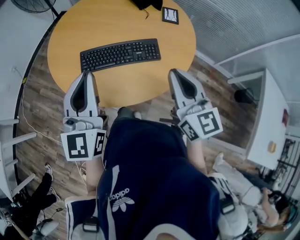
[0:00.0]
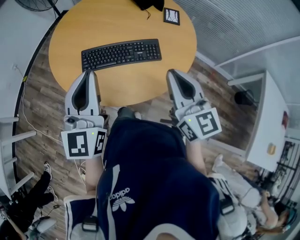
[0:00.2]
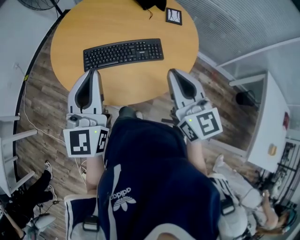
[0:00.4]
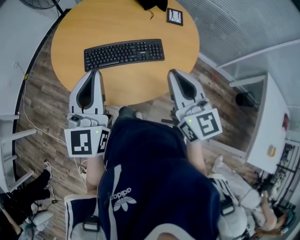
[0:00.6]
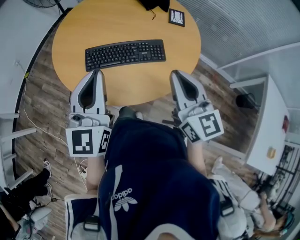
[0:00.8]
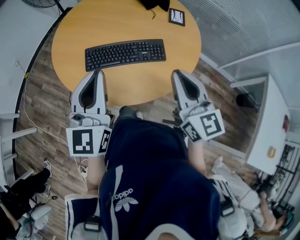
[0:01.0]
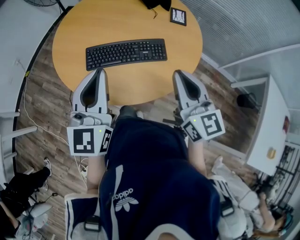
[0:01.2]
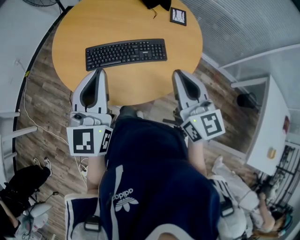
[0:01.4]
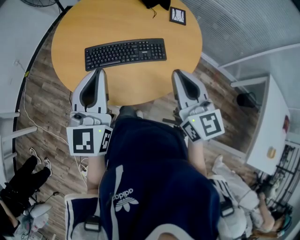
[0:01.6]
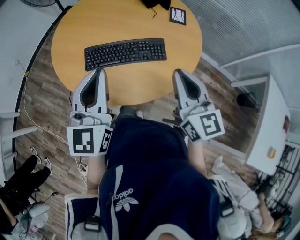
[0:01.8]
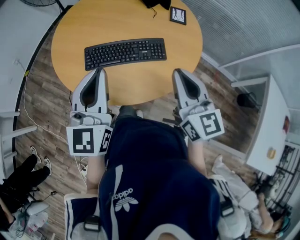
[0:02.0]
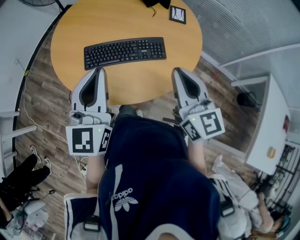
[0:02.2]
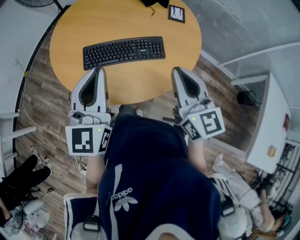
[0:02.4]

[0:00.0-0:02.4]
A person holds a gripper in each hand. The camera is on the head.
0:00.0 to 0:01.2: The grippers stay close to where they were, moving slightly.
0:01.2 to 0:02.4: Neither gripper changes place.

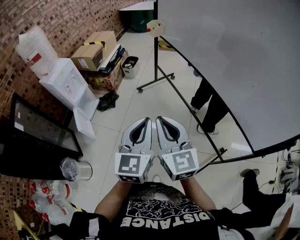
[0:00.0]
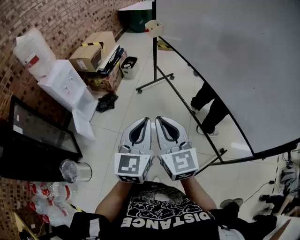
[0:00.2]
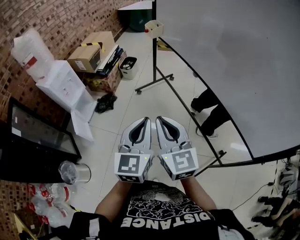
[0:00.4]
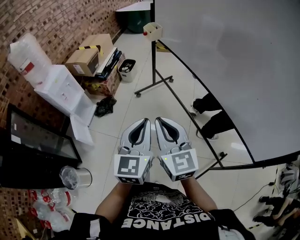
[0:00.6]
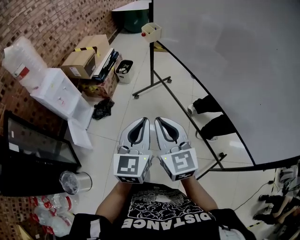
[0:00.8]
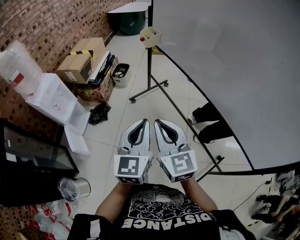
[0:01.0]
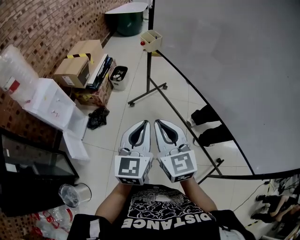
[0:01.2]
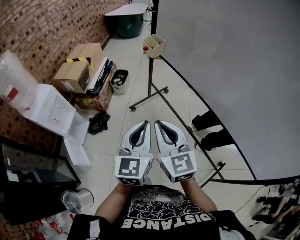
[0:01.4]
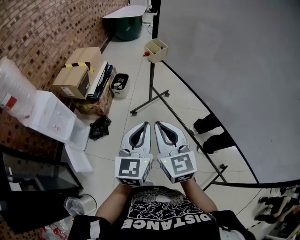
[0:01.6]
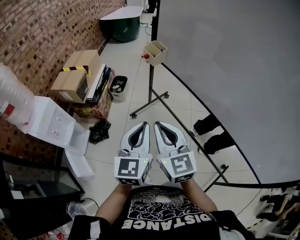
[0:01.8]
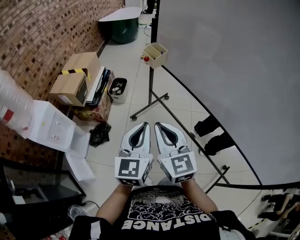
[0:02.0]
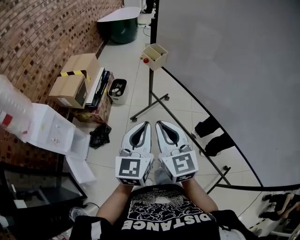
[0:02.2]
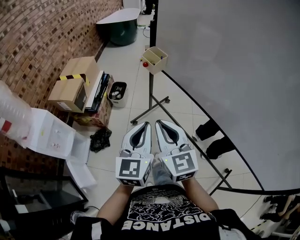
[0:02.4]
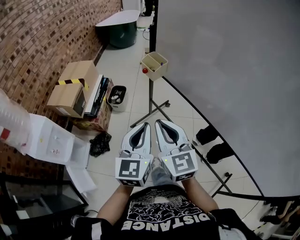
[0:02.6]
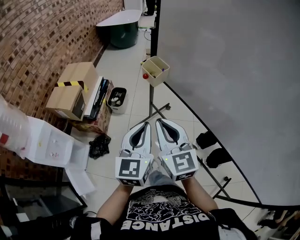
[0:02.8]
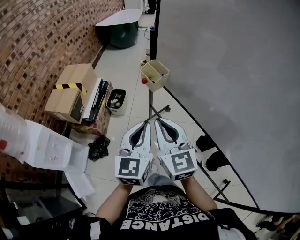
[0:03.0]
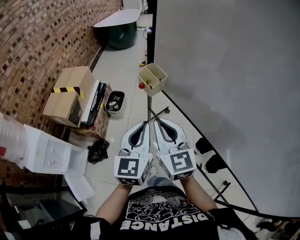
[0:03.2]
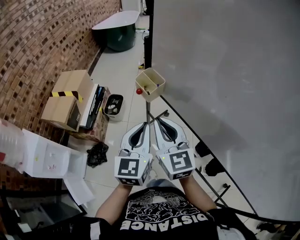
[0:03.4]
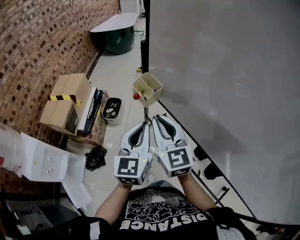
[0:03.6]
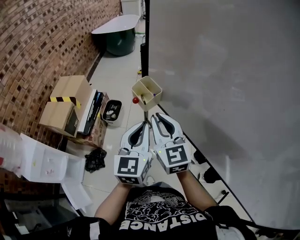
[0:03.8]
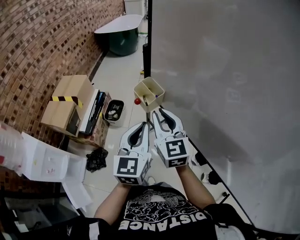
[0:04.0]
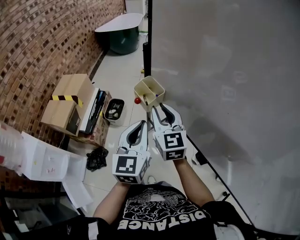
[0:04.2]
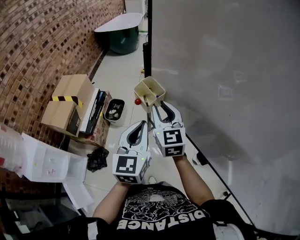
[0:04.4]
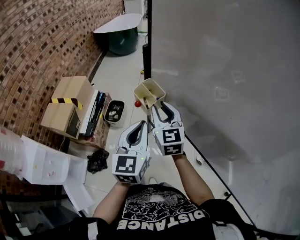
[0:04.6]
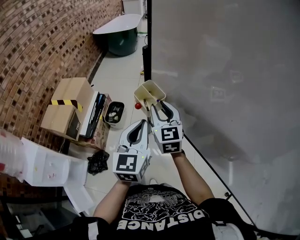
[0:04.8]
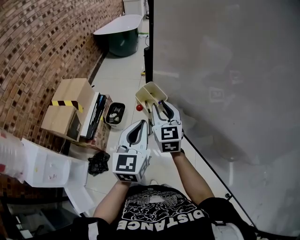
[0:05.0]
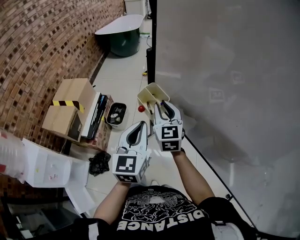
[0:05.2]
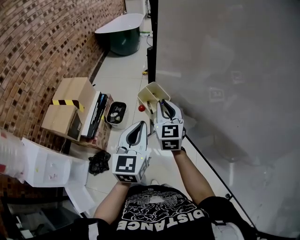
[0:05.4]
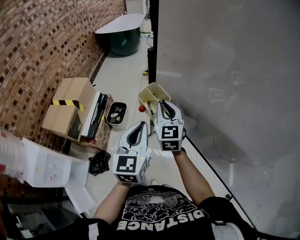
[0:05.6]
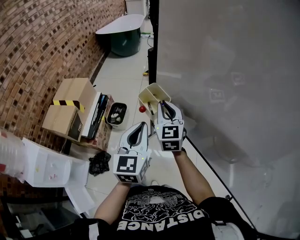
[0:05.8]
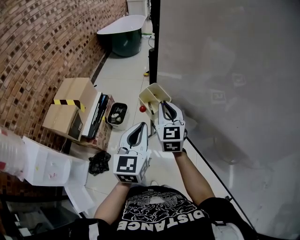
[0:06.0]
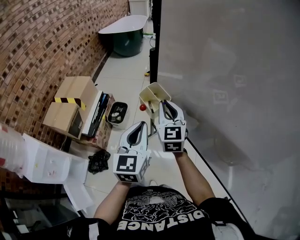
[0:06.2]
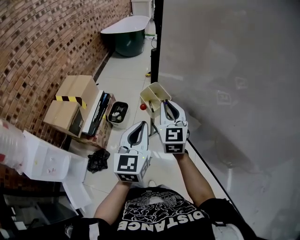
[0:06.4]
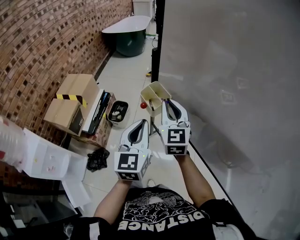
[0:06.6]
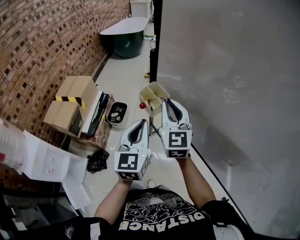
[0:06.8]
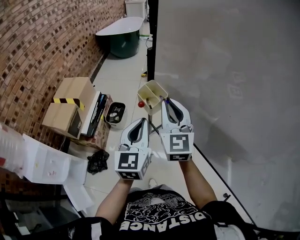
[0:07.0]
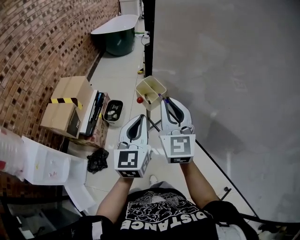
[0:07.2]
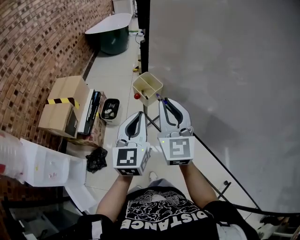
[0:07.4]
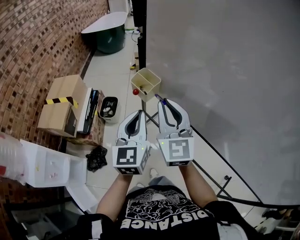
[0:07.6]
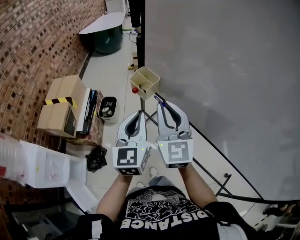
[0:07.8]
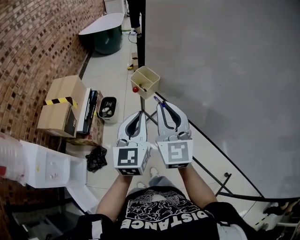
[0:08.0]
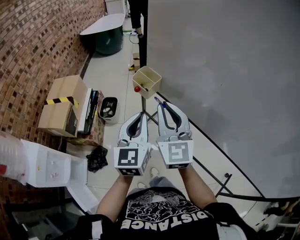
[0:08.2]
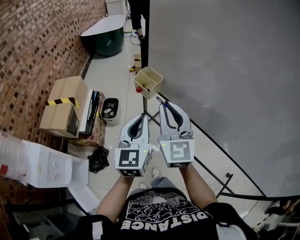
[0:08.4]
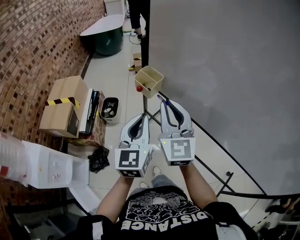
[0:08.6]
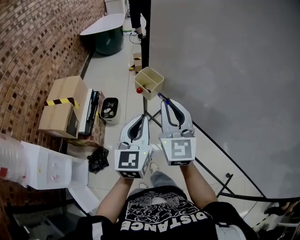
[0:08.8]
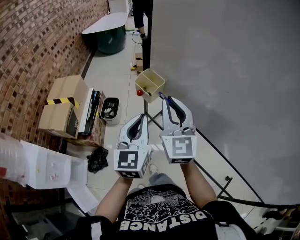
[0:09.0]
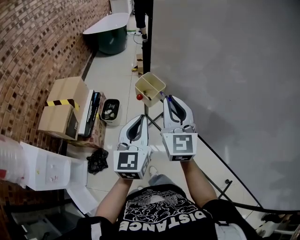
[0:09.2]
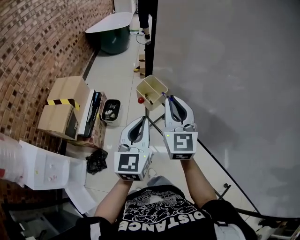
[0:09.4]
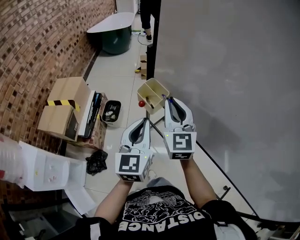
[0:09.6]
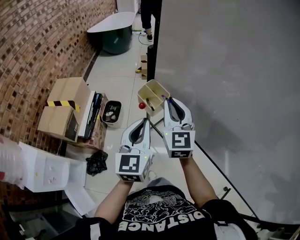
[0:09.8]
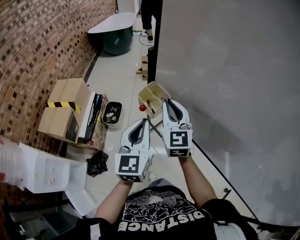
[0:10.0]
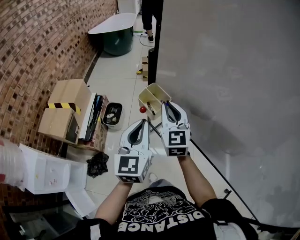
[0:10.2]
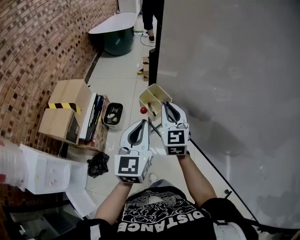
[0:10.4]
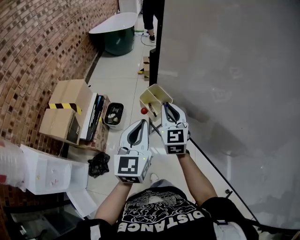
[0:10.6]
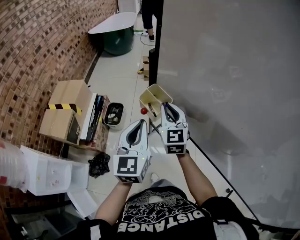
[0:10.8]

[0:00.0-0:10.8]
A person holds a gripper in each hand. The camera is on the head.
0:00.0 to 0:01.6: The two grippers go roughly 30 cm forward.
0:01.6 to 0:03.0: The two grippers go approximately 25 cm forward.
0:03.0 to 0:04.6: The right gripper travels forward by about 20 cm, and opens its fingers, while the left gripper travels forward by about 15 cm.
0:04.6 to 0:06.2: The grippers stay close to where they were, moving slightly.
0:06.2 to 0:07.8: The right gripper goes about 20 cm backward and upward. The left gripper heads backward, covering approximately 5 cm.
0:07.8 to 0:09.2: The right gripper travels forward by roughly 5 cm.
0:09.2 to 0:10.8: The right gripper shifts approximately 15 cm forward and downward. The left gripper goes roughly 5 cm forward.

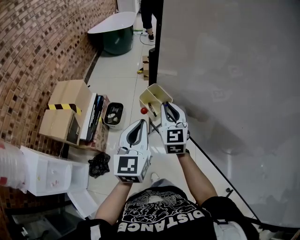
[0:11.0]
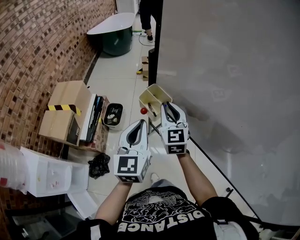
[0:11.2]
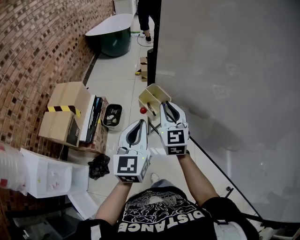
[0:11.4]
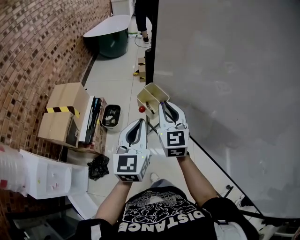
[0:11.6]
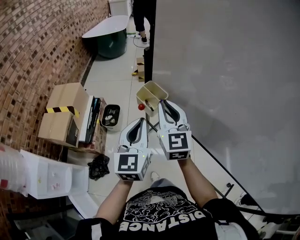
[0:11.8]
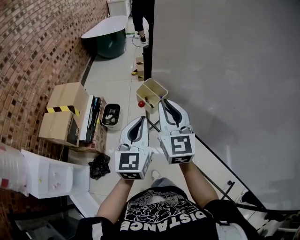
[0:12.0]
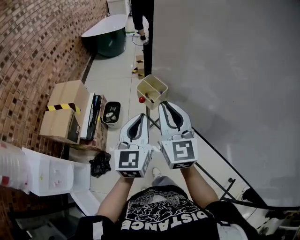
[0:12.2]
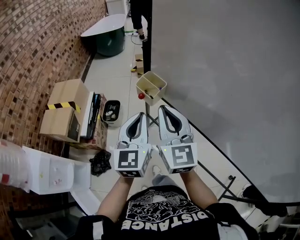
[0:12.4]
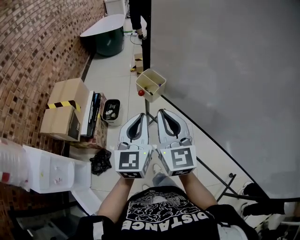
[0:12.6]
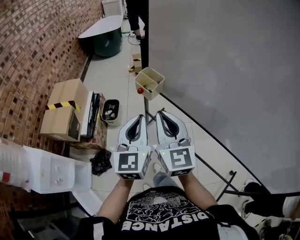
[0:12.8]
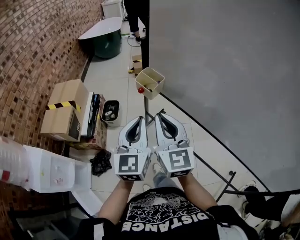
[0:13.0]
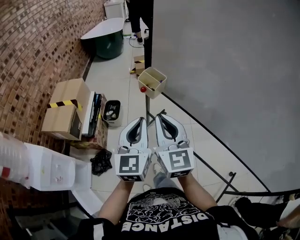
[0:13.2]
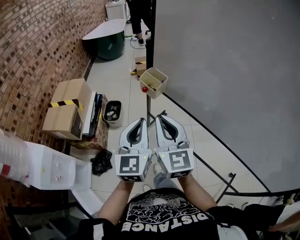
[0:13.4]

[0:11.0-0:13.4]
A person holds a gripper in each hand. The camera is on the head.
0:11.0 to 0:12.2: The right gripper travels backward and upward by about 15 cm. The left gripper moves about 5 cm.
0:12.2 to 0:13.4: The two grippers go about 10 cm backward.

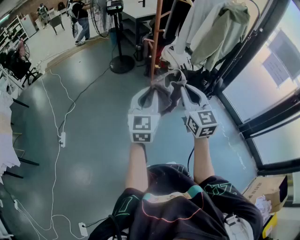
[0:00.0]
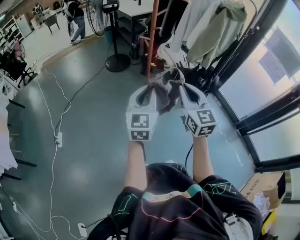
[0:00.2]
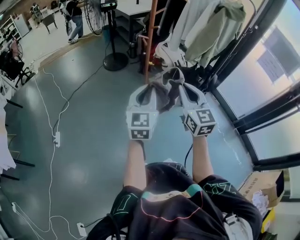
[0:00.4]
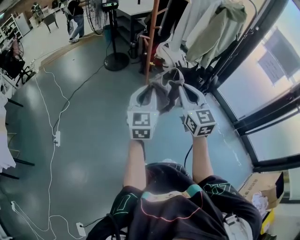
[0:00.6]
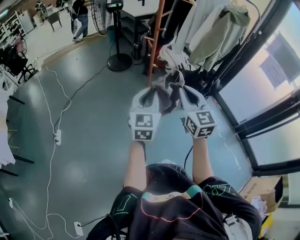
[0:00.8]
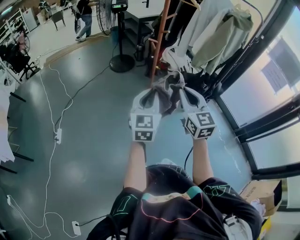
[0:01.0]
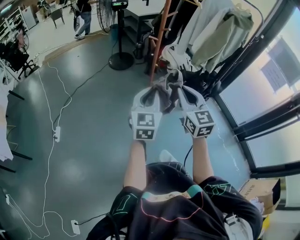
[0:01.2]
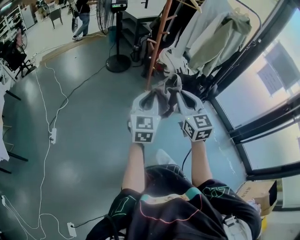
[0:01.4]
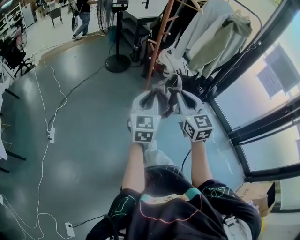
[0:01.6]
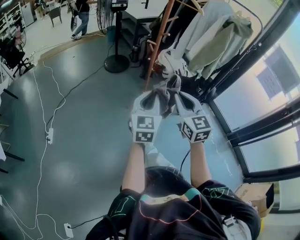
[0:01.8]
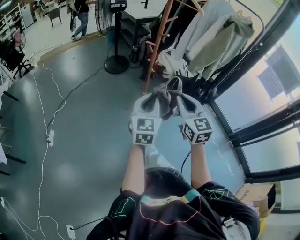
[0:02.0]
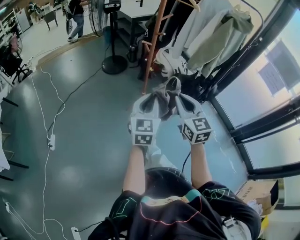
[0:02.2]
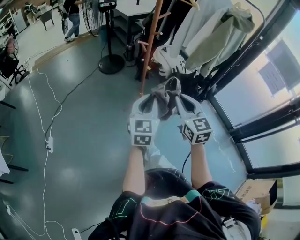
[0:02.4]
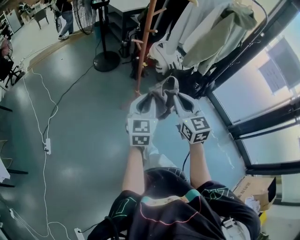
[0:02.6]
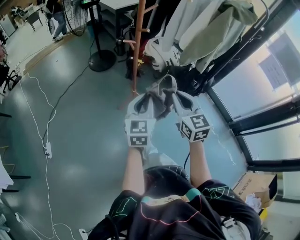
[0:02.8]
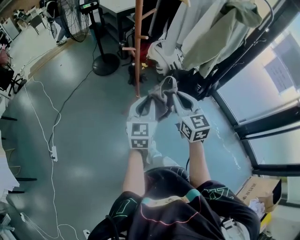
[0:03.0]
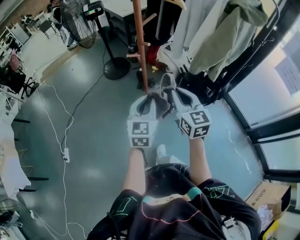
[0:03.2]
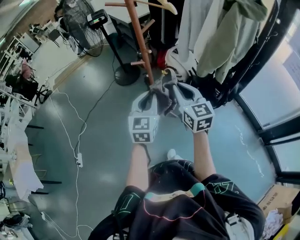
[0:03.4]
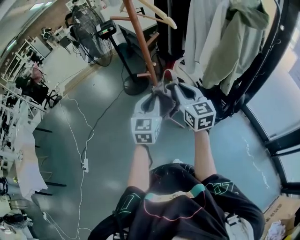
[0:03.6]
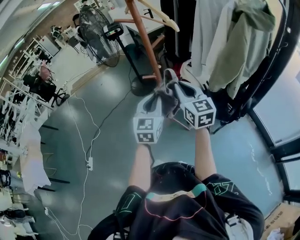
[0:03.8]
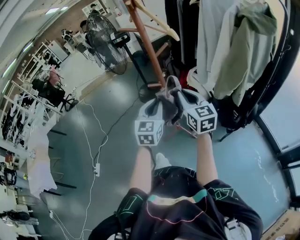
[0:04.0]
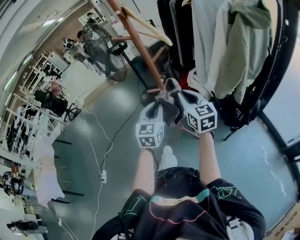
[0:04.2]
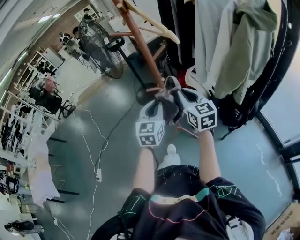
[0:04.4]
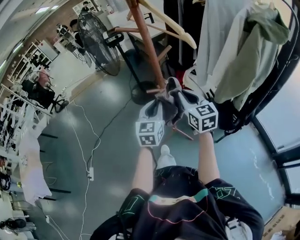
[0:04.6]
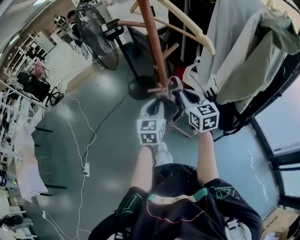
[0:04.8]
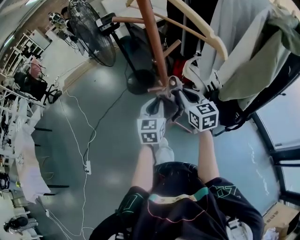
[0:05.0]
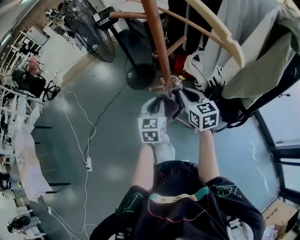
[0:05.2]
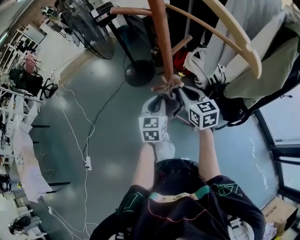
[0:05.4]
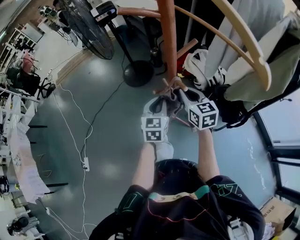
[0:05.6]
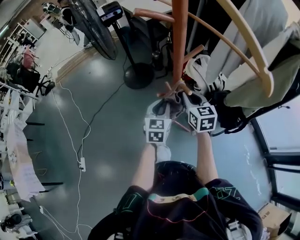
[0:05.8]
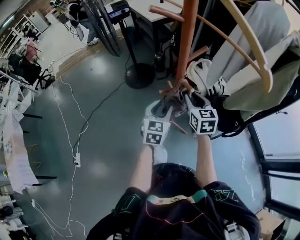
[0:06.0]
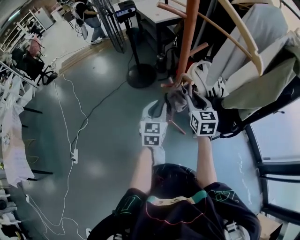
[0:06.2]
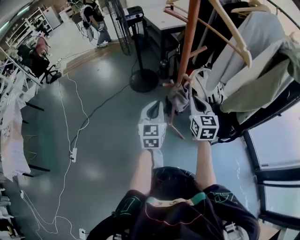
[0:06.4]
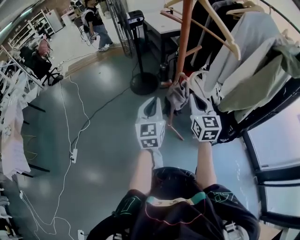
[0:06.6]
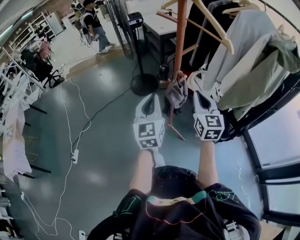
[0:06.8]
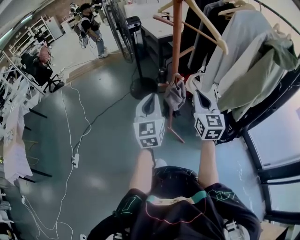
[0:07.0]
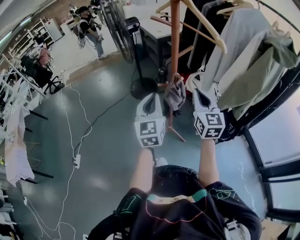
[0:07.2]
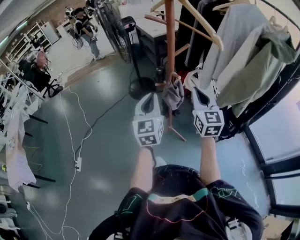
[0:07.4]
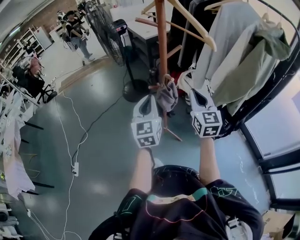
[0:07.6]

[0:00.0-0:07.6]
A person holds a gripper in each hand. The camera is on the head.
0:00.0 to 0:01.6: The grippers stay close to where they were, moving slightly.
0:01.6 to 0:03.0: The two grippers go roughly 20 cm forward and to the right.
0:03.0 to 0:04.6: Both grippers travel together forward, approximately 20 cm.
0:04.6 to 0:06.0: The two grippers go some 15 cm downward and forward. The left gripper opens its fingers. Meanwhile the right gripper opens up.
0:06.0 to 0:07.6: The grippers both shift upward and backward by approximately 15 cm. The right gripper changes its angle by some 20 degrees, and closes up; the left gripper changes its angle by some 30 degrees, and closes its fingers.
